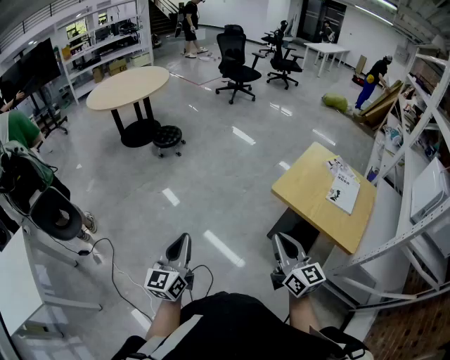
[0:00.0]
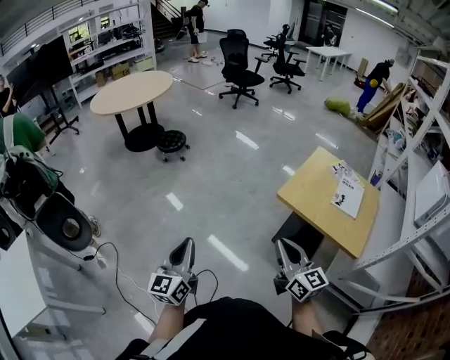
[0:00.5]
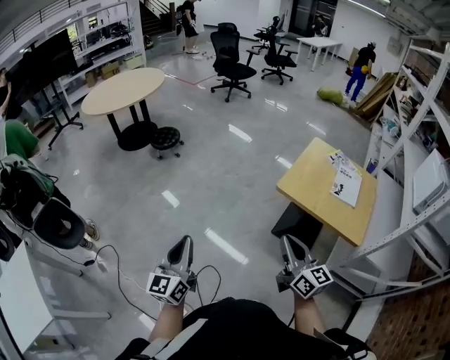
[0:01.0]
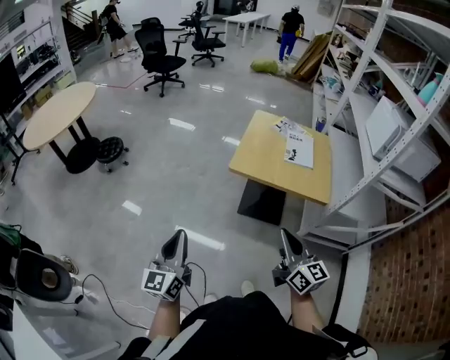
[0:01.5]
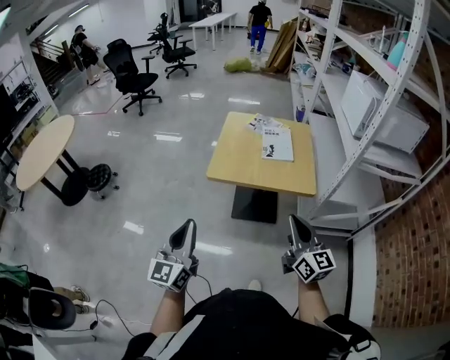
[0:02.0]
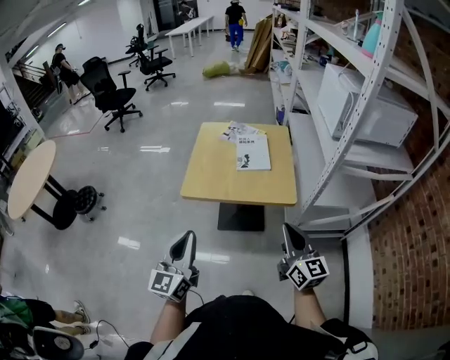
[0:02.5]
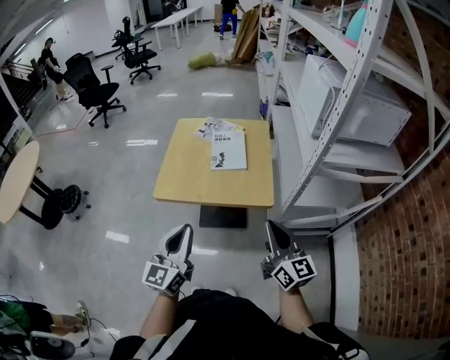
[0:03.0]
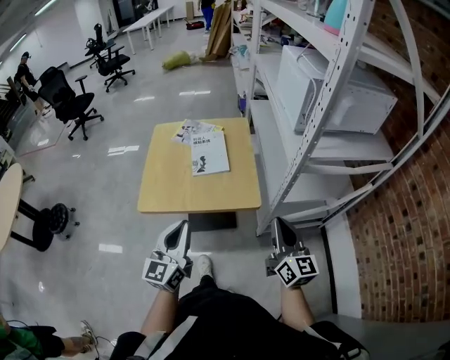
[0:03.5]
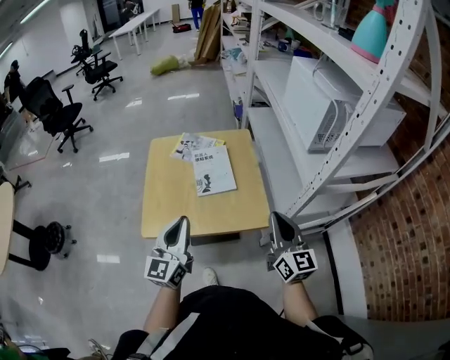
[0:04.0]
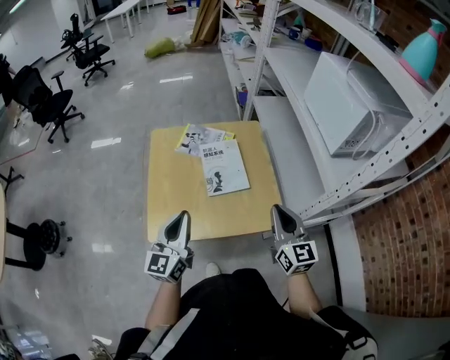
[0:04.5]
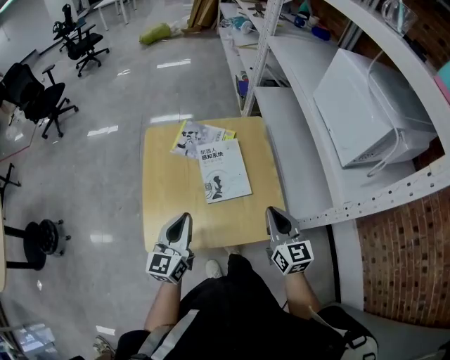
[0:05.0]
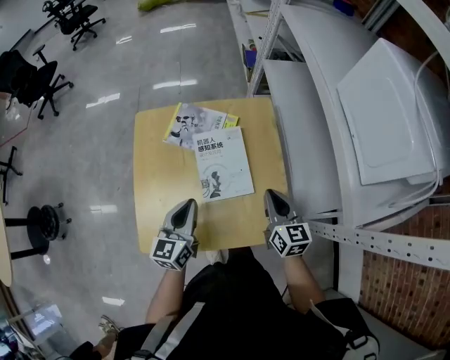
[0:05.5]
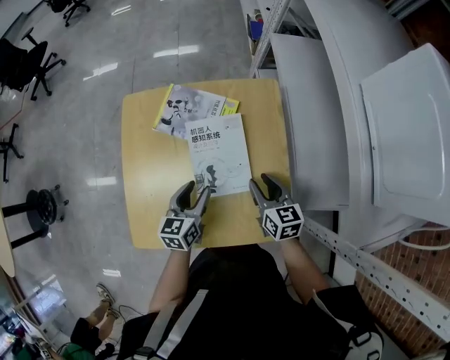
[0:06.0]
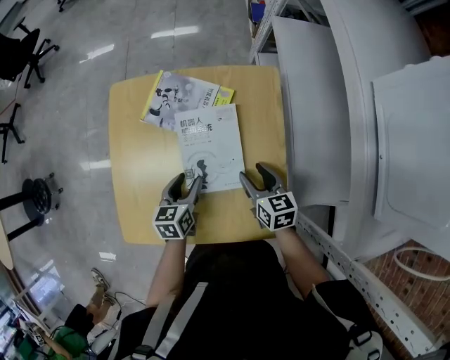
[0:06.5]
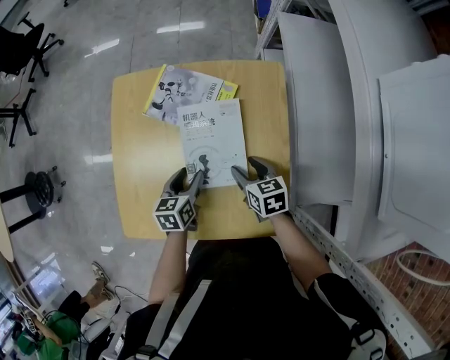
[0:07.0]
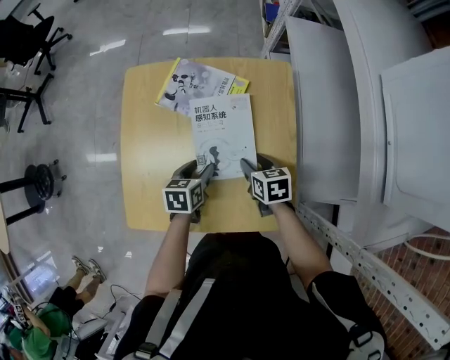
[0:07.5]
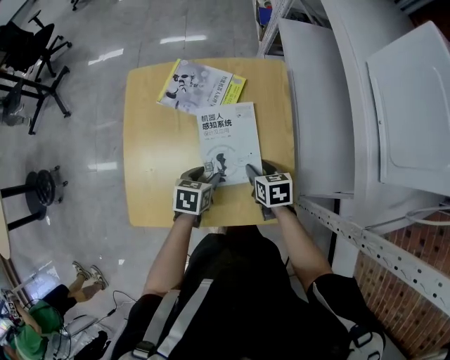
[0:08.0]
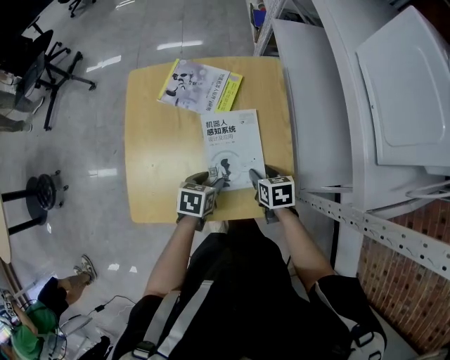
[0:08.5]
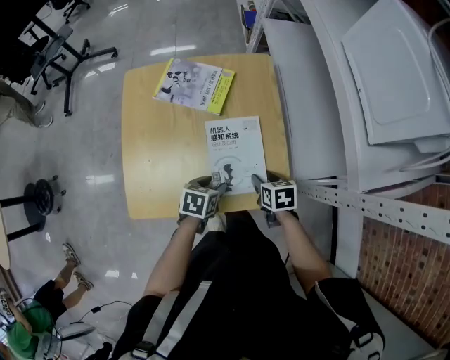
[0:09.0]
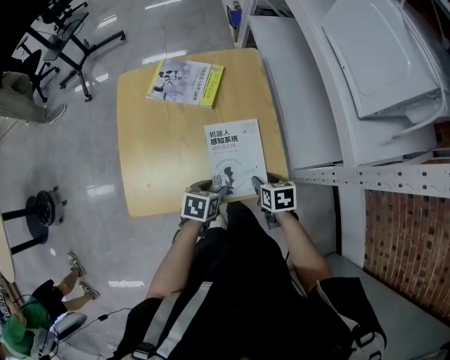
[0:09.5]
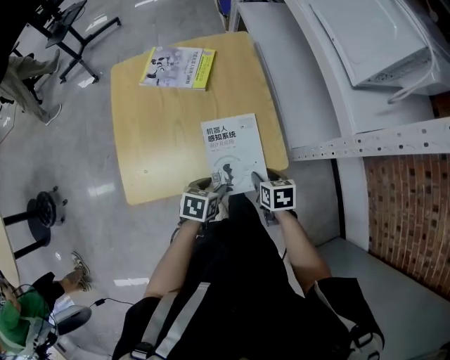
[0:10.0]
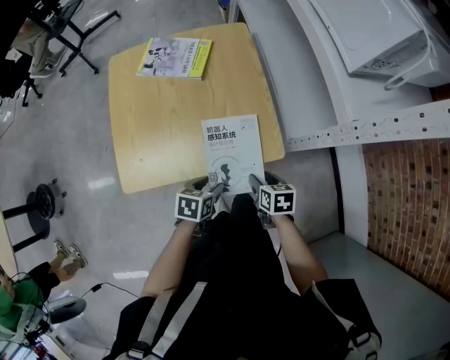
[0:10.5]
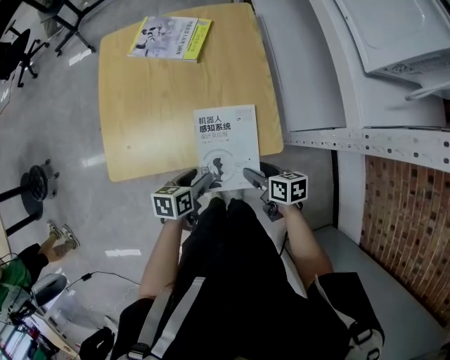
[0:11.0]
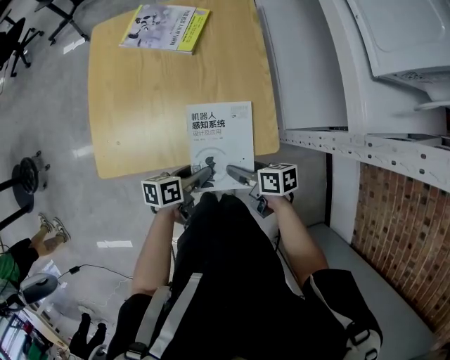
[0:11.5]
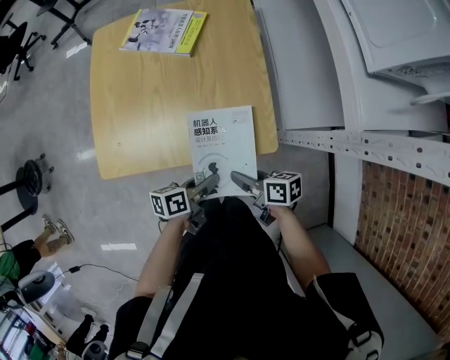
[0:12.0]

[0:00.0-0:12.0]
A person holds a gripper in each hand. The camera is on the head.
0:00.0 to 0:02.0: The right gripper shifts by approximately 20 cm, and turns by about 40 degrees; the left gripper moves some 20 cm, and rotates some 40 degrees.
0:02.0 to 0:04.0: Both grippers move forward and to the right, some 30 cm.
0:04.0 to 0:06.0: Both grippers move downward and forward, some 35 cm. The right gripper angles its fingers downward, by approximately 30 degrees, and opens; the left gripper angles its fingers downward, by roughly 30 degrees, and opens.
0:06.0 to 0:08.0: The grippers both shift downward by about 5 cm. The right gripper swivels roughly 20 degrees. The left gripper swivels approximately 30 degrees.
0:08.0 to 0:10.0: The two grippers go some 20 cm backward and to the right.
0:10.0 to 0:12.0: The right gripper is displaced backward by about 5 cm, and turns by some 40 degrees, while the left gripper goes approximately 5 cm to the right, swivels some 40 degrees, and closes its fingers.

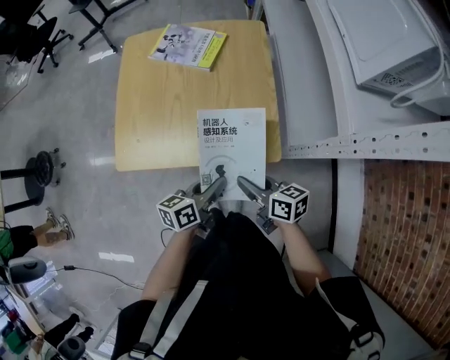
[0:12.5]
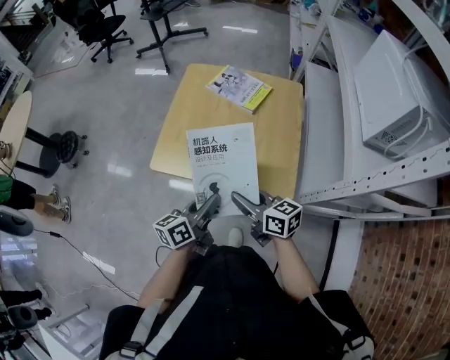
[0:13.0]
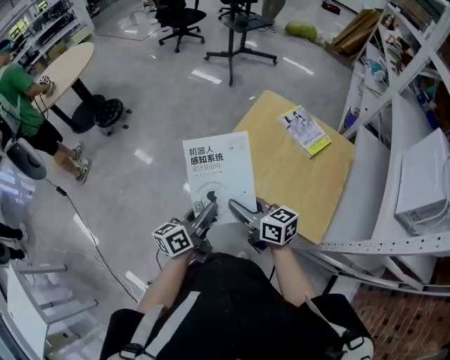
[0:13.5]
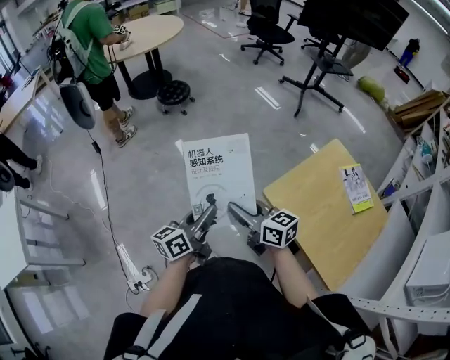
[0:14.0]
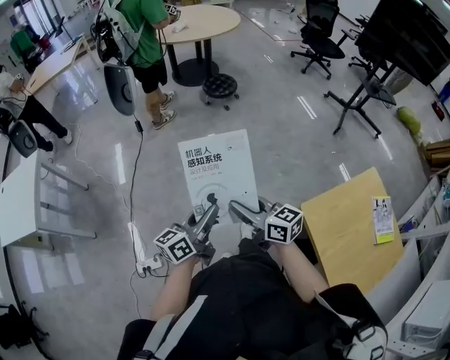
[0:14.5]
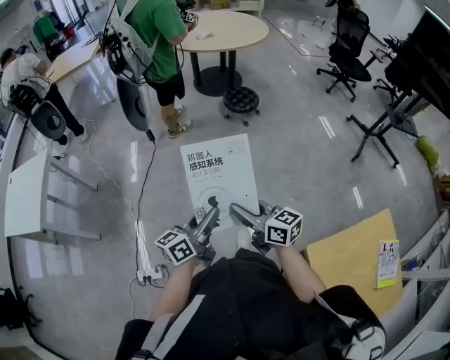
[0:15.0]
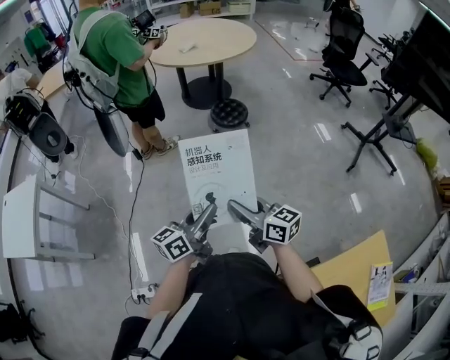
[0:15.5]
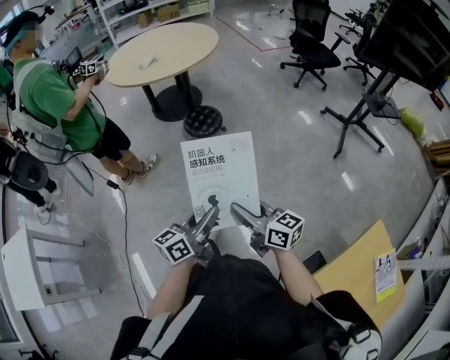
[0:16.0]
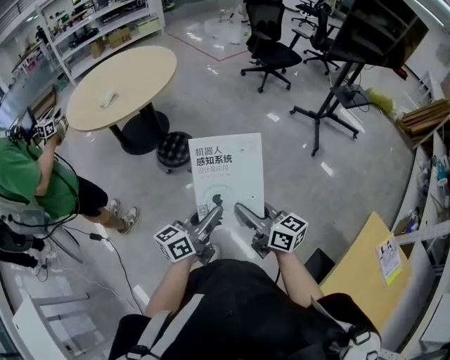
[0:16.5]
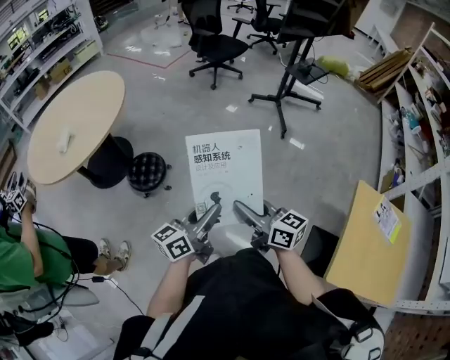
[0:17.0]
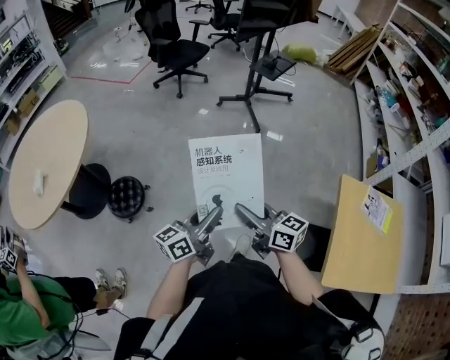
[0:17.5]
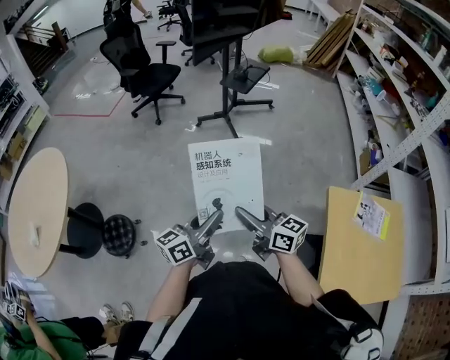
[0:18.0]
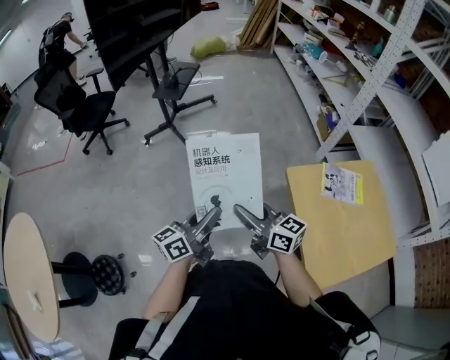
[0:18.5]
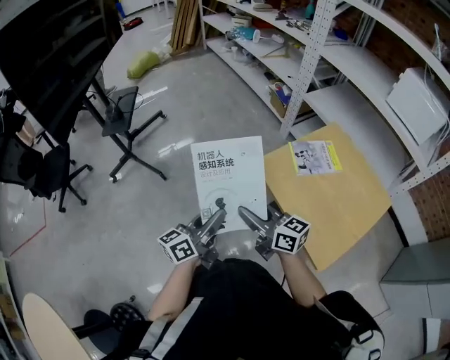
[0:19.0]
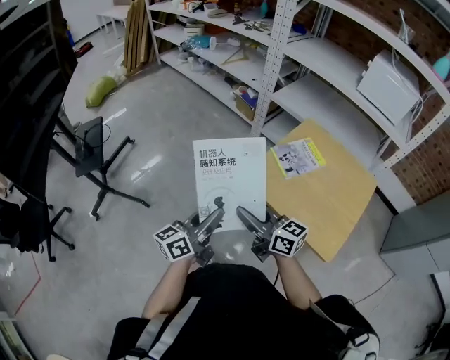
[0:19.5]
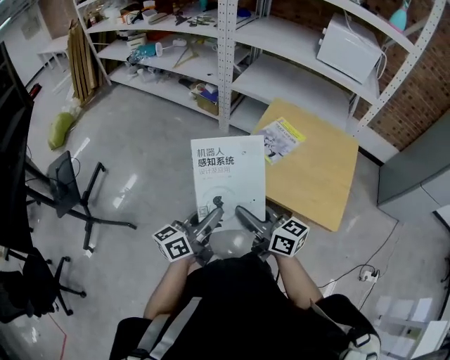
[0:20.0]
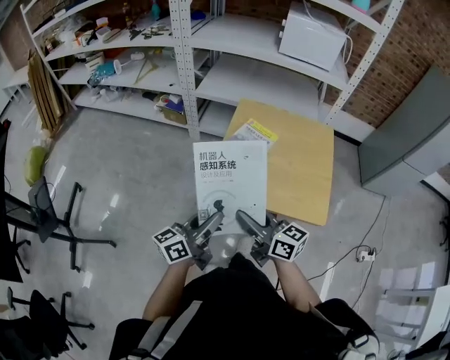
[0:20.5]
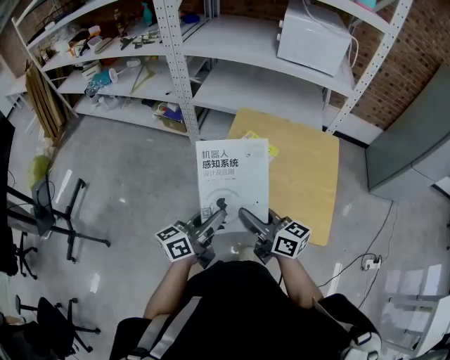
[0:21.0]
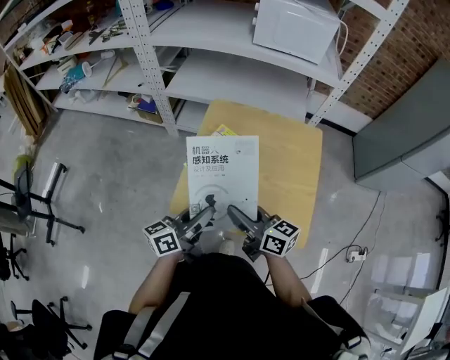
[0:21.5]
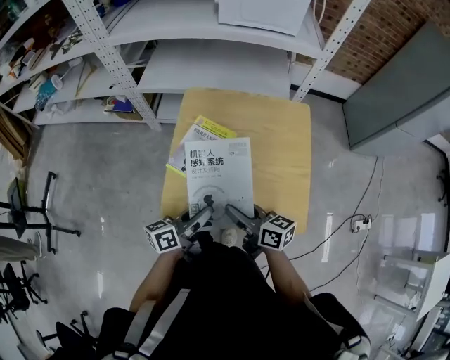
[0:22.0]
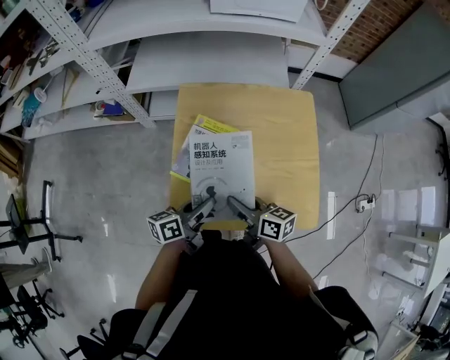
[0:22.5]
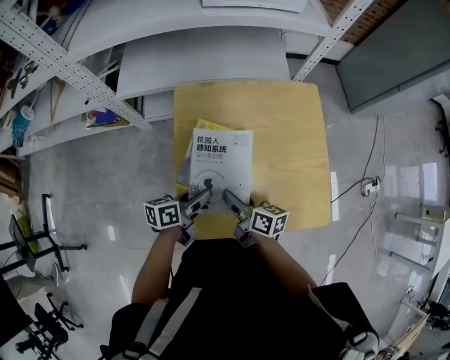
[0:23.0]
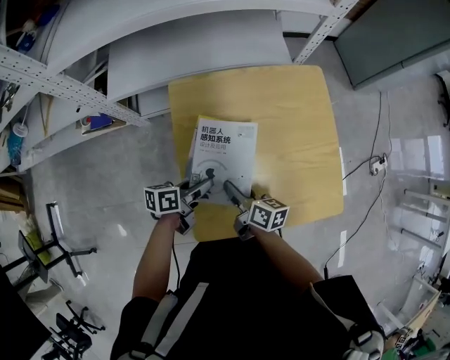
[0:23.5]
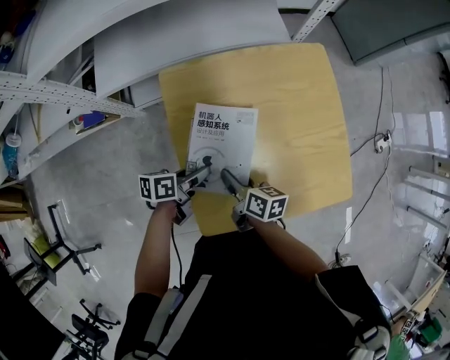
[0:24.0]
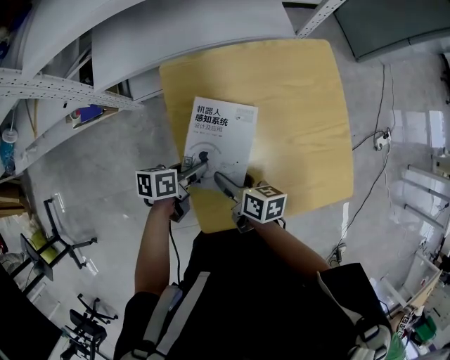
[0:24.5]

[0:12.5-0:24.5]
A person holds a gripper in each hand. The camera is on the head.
0:12.5 to 0:14.5: The two grippers travel together, about 60 cm. The left gripper changes its angle by approximately 80 degrees; the right gripper rotates about 80 degrees.
0:14.5 to 0:16.5: The two grippers travel together, roughly 50 cm. The left gripper swivels some 30 degrees; the right gripper rotates about 30 degrees.
0:16.5 to 0:18.5: Both grippers are carried some 40 cm. The left gripper turns by about 60 degrees; the right gripper turns by approximately 60 degrees.
0:18.5 to 0:20.5: The left gripper shifts by about 20 cm, and turns by approximately 70 degrees, while the right gripper ends up about 15 cm from where it was, and swivels roughly 70 degrees.
0:20.5 to 0:22.5: The two grippers go roughly 30 cm forward, downward and to the right. The left gripper rotates approximately 30 degrees; the right gripper swivels approximately 30 degrees.
0:22.5 to 0:24.5: The left gripper shifts some 15 cm downward, to the left and forward, and rotates some 40 degrees. Meanwhile the right gripper shifts roughly 15 cm to the left, downward and forward, turns by roughly 30 degrees, and opens its fingers.

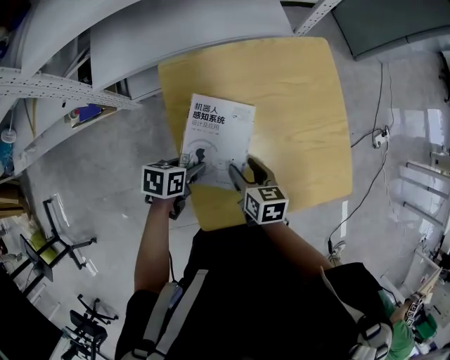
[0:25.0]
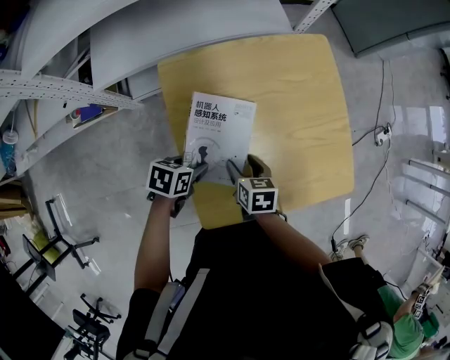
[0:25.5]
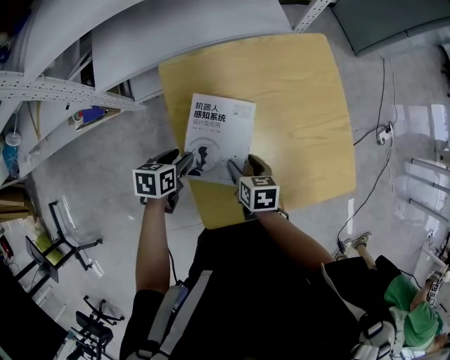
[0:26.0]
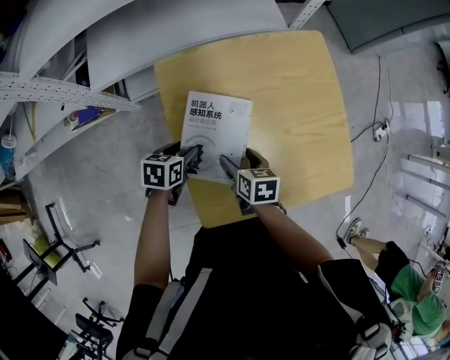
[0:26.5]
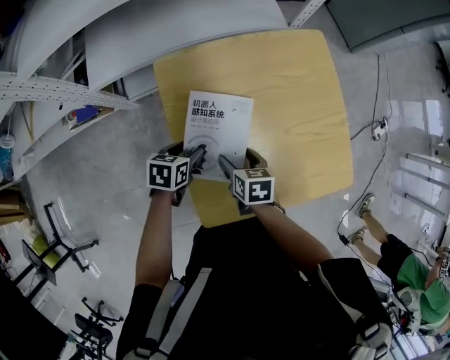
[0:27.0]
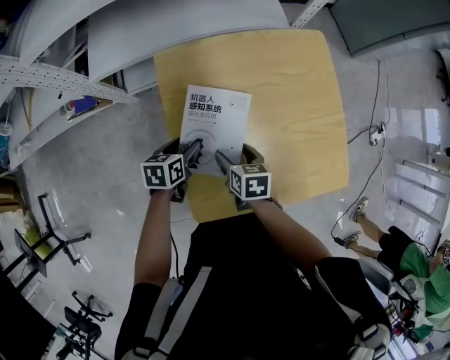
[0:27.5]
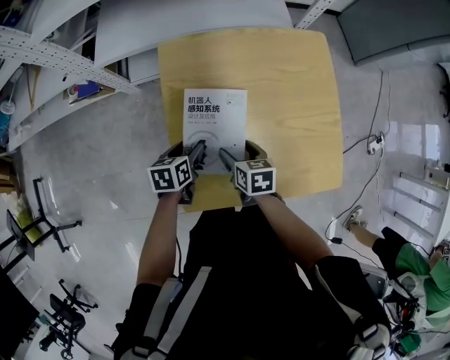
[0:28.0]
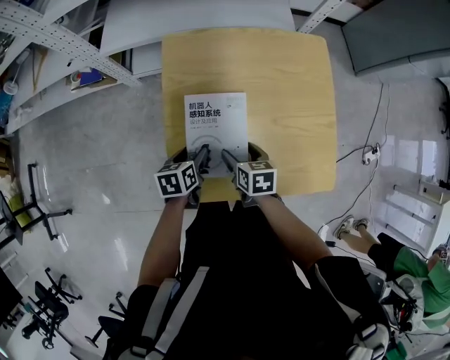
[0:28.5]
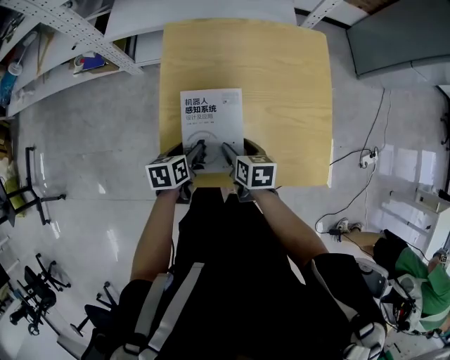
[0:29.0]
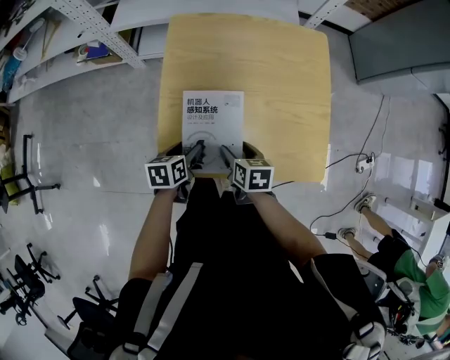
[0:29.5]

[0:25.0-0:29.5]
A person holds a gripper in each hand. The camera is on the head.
0:25.0 to 0:27.0: There are only small adjustments of the grippers.
0:27.0 to 0:29.5: Both grippers travel together backward and to the right, approximately 15 cm. The left gripper swivels some 30 degrees.
